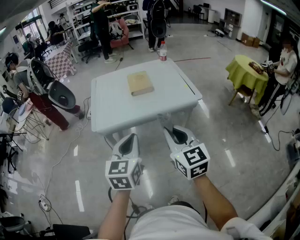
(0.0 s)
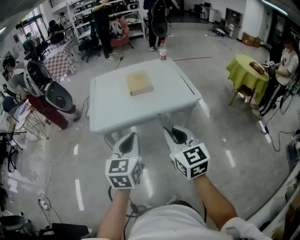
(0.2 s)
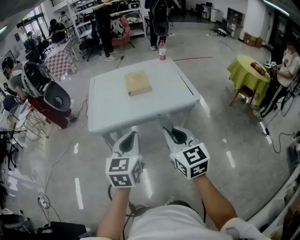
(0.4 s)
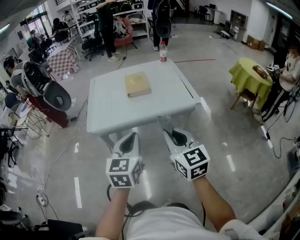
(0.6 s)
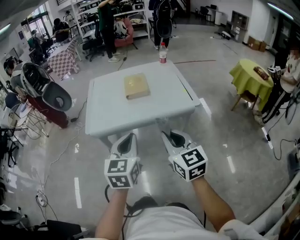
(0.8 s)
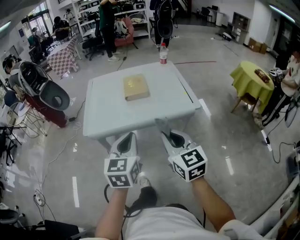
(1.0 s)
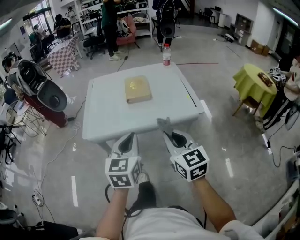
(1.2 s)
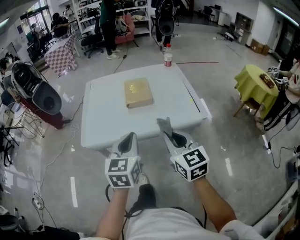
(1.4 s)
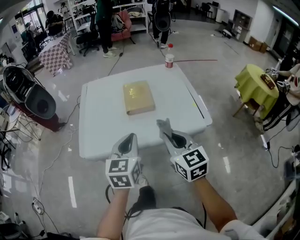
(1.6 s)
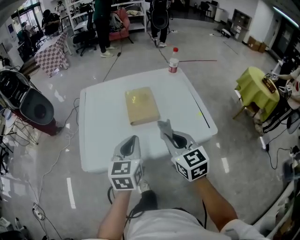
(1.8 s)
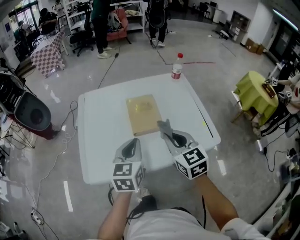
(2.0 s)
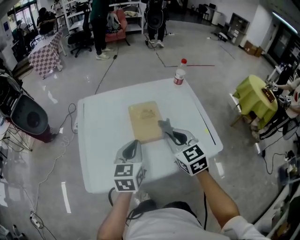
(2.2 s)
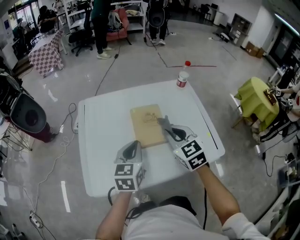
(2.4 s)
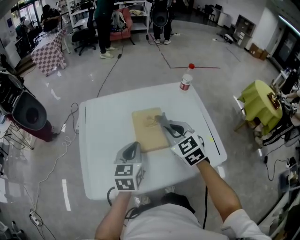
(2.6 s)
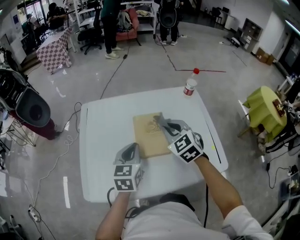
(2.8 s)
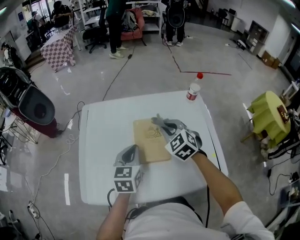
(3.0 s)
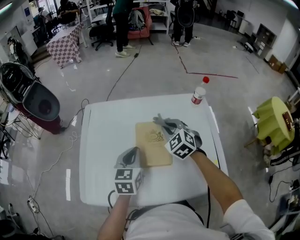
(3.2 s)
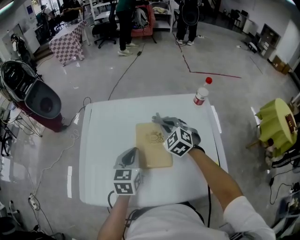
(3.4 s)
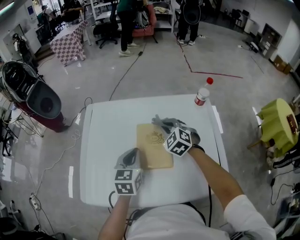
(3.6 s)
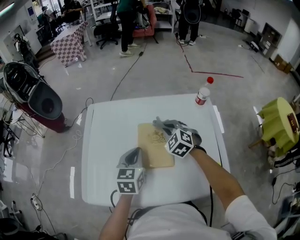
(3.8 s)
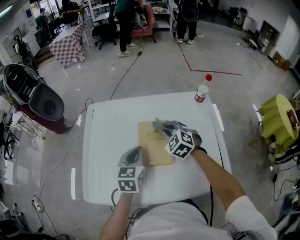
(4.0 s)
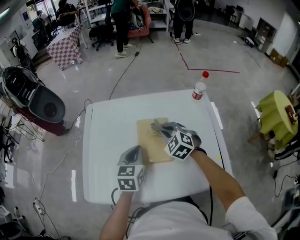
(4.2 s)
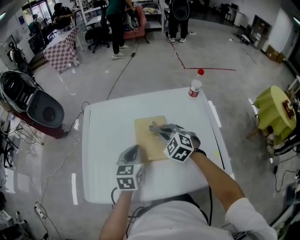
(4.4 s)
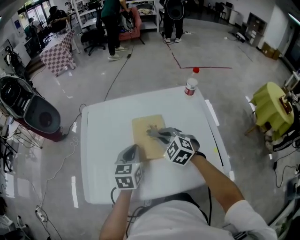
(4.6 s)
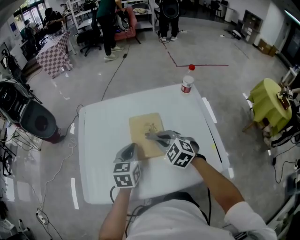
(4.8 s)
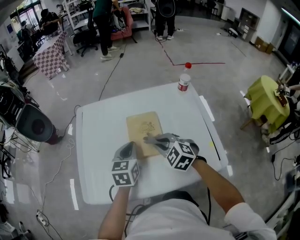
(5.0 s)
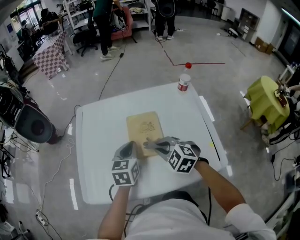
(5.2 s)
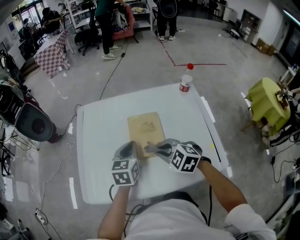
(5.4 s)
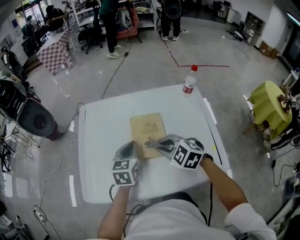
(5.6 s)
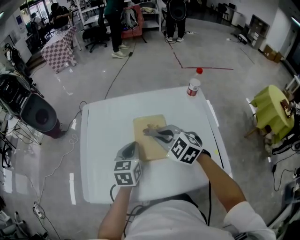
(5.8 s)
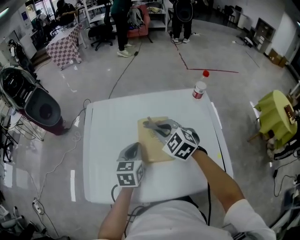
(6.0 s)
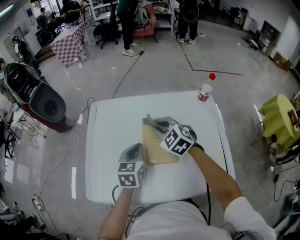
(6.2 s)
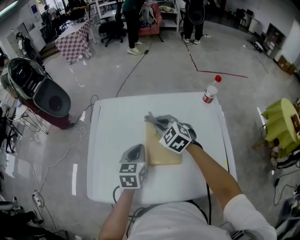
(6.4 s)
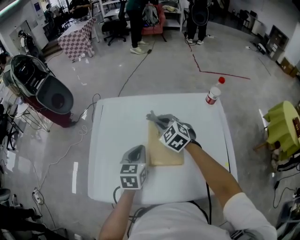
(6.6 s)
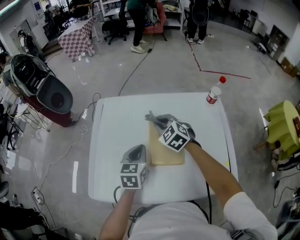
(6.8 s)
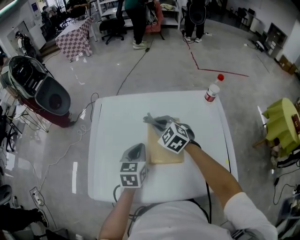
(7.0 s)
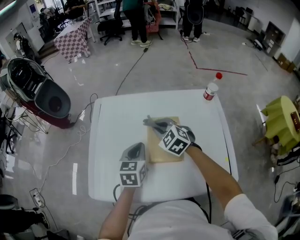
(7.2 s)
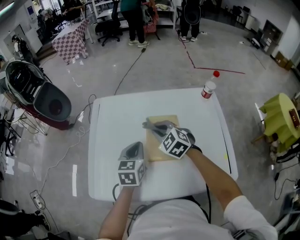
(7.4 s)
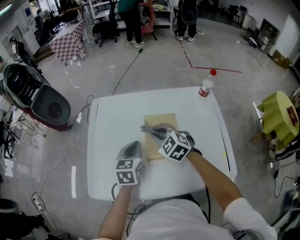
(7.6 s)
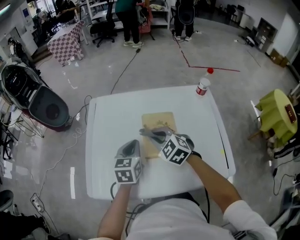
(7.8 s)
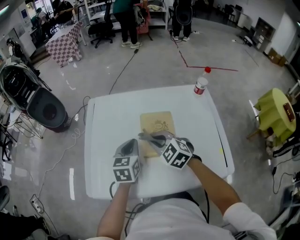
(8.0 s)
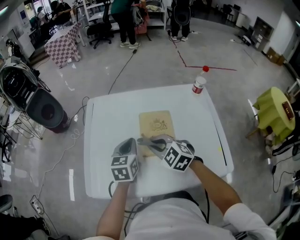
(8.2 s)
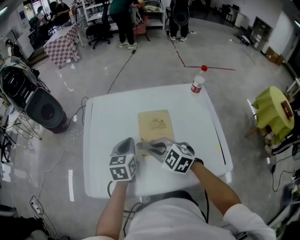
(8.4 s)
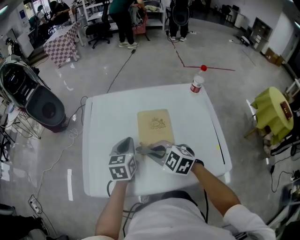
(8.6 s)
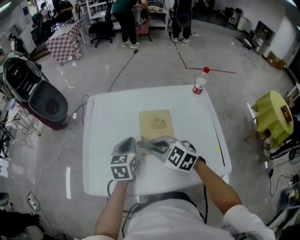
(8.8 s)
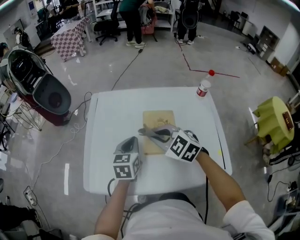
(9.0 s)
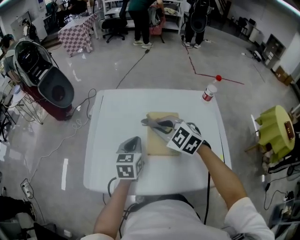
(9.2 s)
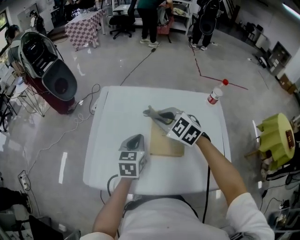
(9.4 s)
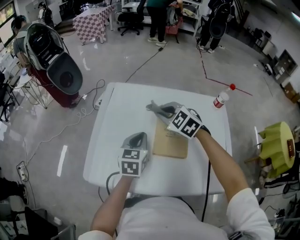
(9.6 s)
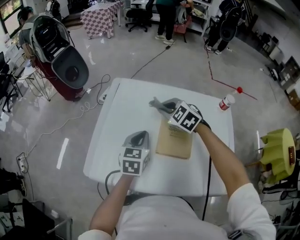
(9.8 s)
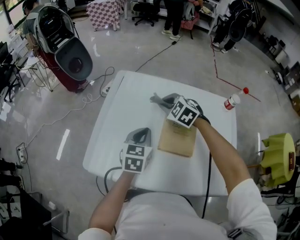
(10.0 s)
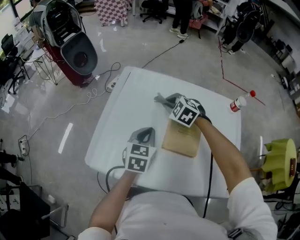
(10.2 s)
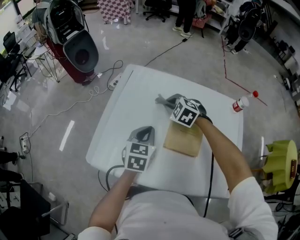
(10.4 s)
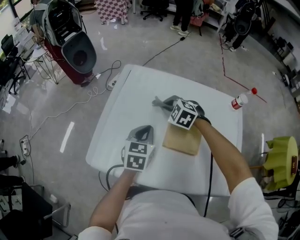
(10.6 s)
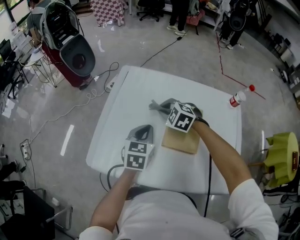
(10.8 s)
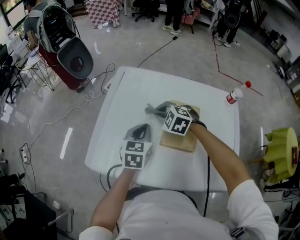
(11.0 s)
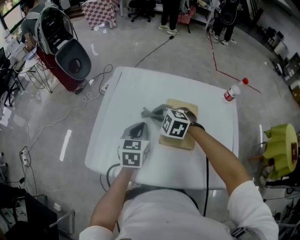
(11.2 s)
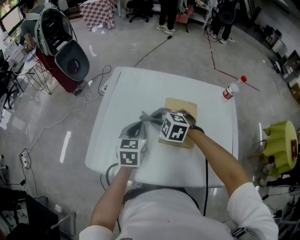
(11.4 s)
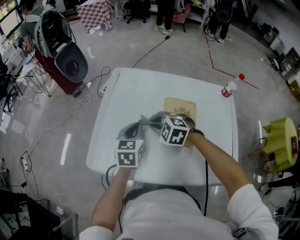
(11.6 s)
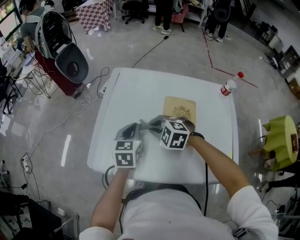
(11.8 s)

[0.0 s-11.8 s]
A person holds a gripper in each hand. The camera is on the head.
0.0 to 1.4 s: The grippers both shift forward by roughly 15 cm.
1.4 to 3.0 s: The grippers both shift forward by about 40 cm. The right gripper rotates some 40 degrees.
3.0 to 4.4 s: The right gripper moves approximately 5 cm forward and comes back.
4.4 to 6.0 s: The right gripper heads upward, covering about 5 cm, and reaches approximately 10 cm backward, then returns.
6.0 to 7.4 s: The right gripper moves about 10 cm forward and comes back.
7.4 to 8.8 s: The right gripper shifts roughly 10 cm backward.
8.8 to 10.4 s: The right gripper is displaced forward by about 20 cm, and changes its angle by some 30 degrees. The left gripper changes place by some 5 cm.
10.4 to 11.8 s: The right gripper goes roughly 15 cm backward and to the left.

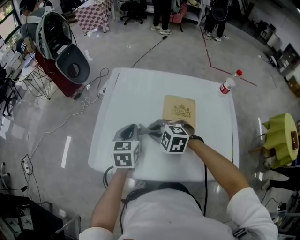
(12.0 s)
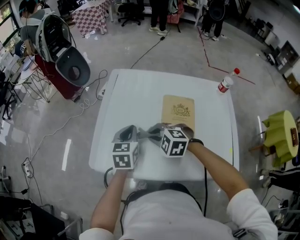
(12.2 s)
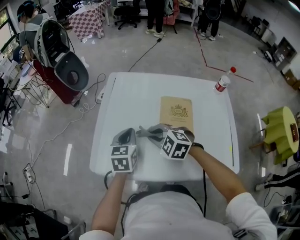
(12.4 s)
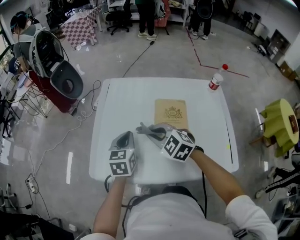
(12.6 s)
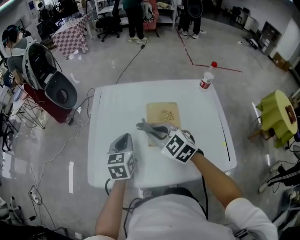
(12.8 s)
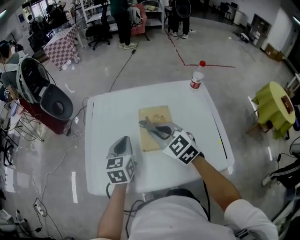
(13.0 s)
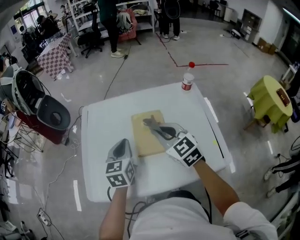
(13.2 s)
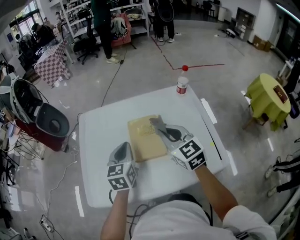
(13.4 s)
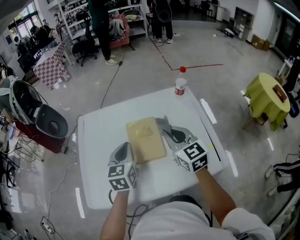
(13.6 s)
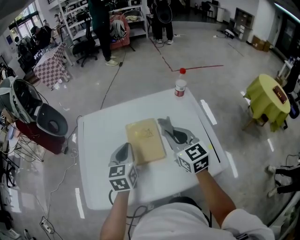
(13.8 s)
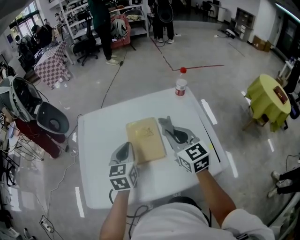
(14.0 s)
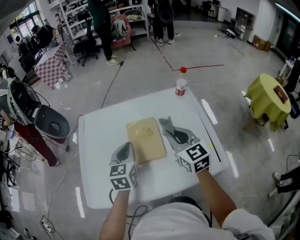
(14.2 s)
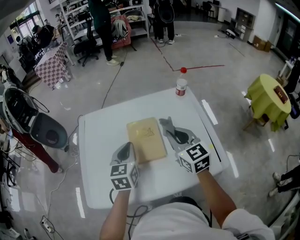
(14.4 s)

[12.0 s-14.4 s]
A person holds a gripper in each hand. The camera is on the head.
12.0 to 13.2 s: The right gripper goes approximately 20 cm to the right and upward, and points its fingers roughly 30 degrees further upward. Meanwhile the left gripper moves to the right and upward, roughly 10 cm.
13.2 to 14.4 s: The right gripper shifts some 10 cm to the right, while the left gripper goes approximately 5 cm to the right.

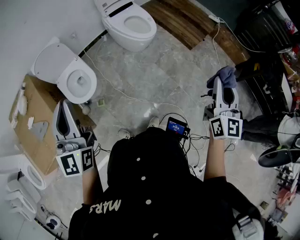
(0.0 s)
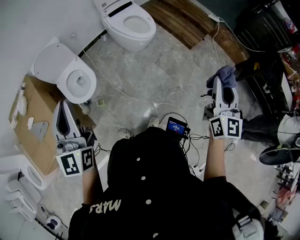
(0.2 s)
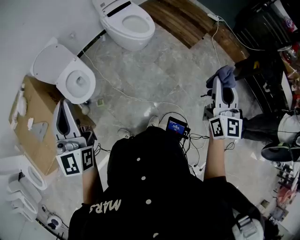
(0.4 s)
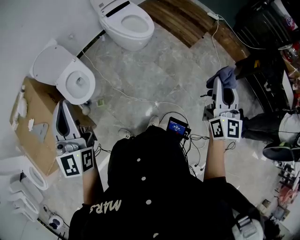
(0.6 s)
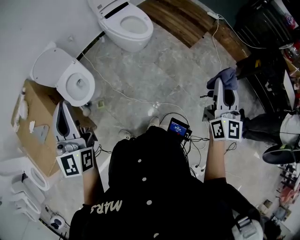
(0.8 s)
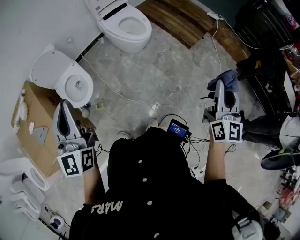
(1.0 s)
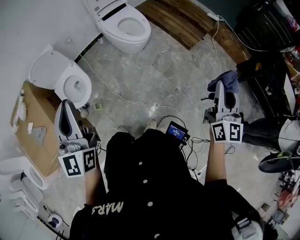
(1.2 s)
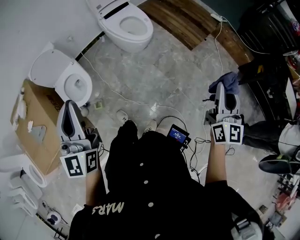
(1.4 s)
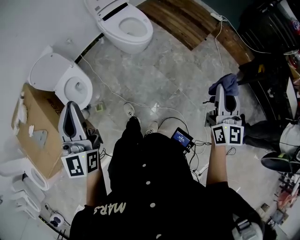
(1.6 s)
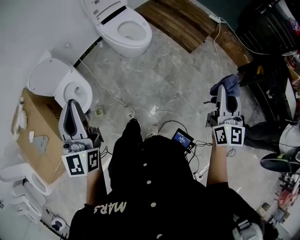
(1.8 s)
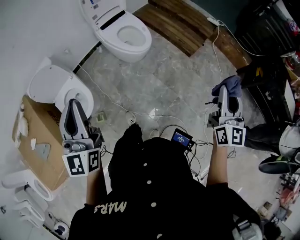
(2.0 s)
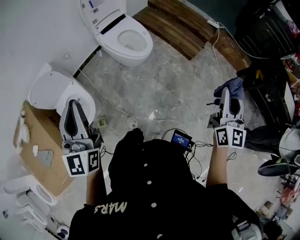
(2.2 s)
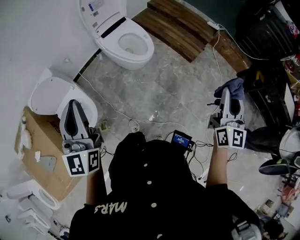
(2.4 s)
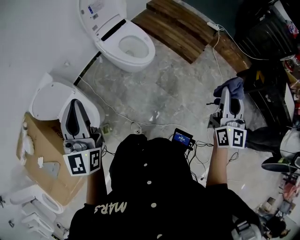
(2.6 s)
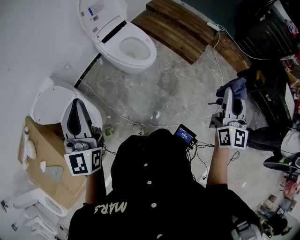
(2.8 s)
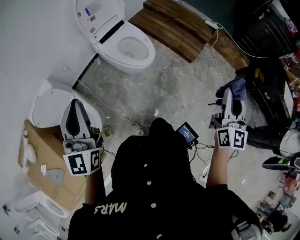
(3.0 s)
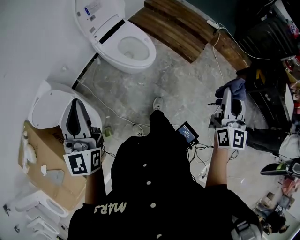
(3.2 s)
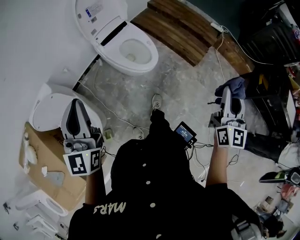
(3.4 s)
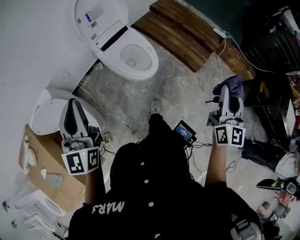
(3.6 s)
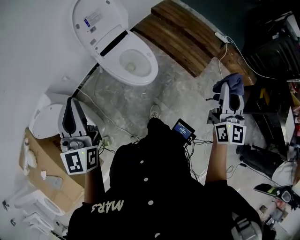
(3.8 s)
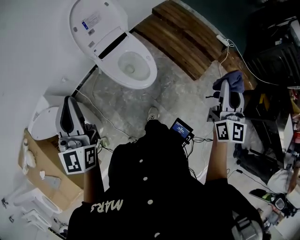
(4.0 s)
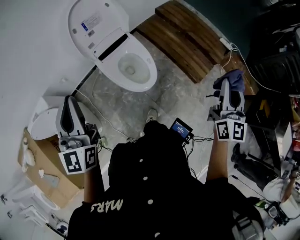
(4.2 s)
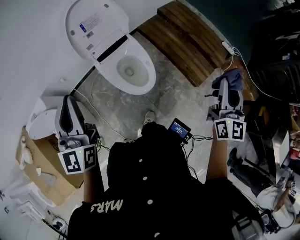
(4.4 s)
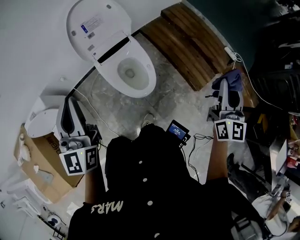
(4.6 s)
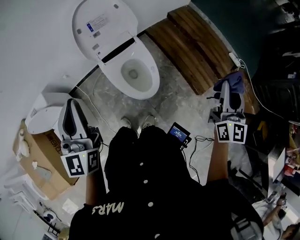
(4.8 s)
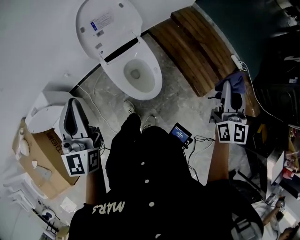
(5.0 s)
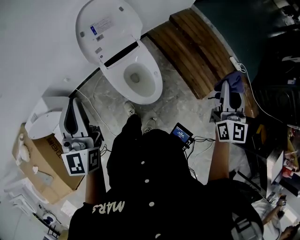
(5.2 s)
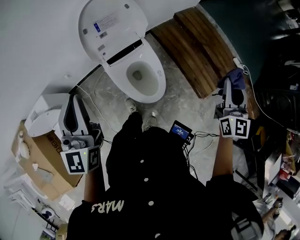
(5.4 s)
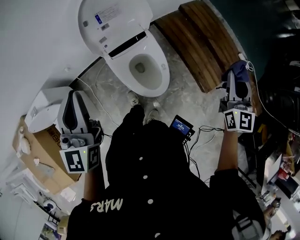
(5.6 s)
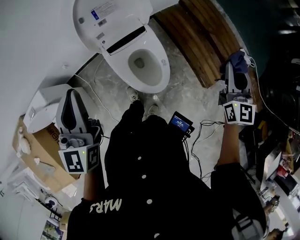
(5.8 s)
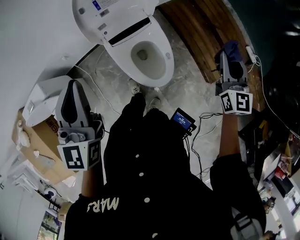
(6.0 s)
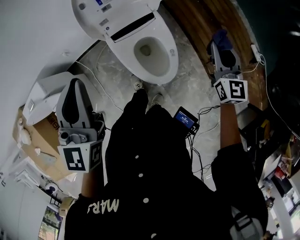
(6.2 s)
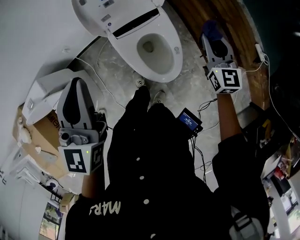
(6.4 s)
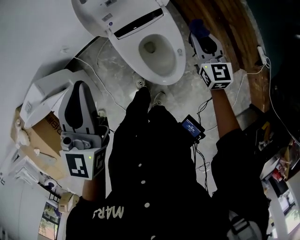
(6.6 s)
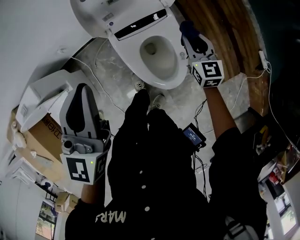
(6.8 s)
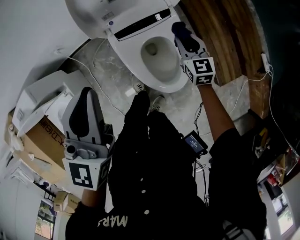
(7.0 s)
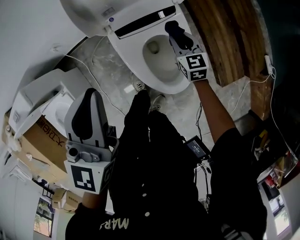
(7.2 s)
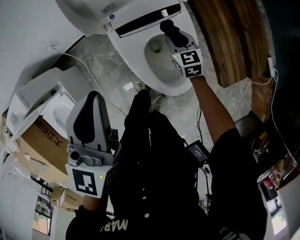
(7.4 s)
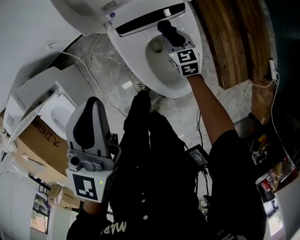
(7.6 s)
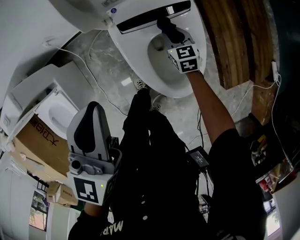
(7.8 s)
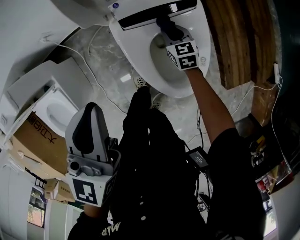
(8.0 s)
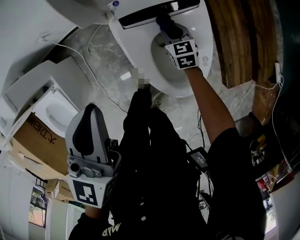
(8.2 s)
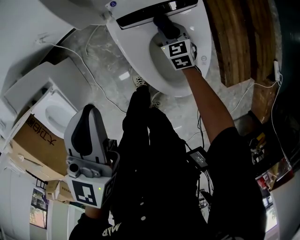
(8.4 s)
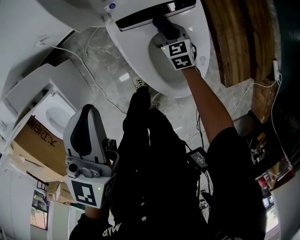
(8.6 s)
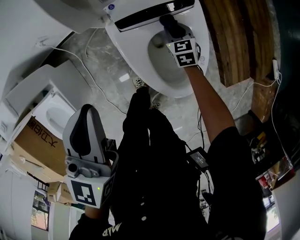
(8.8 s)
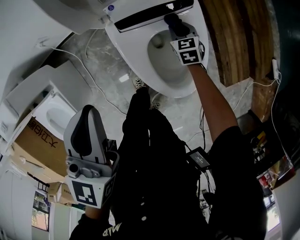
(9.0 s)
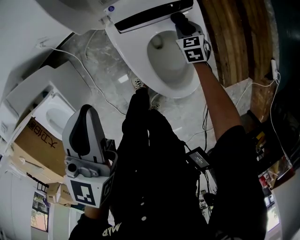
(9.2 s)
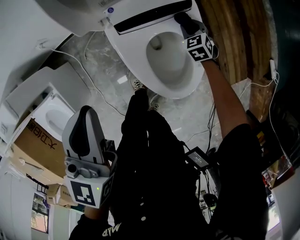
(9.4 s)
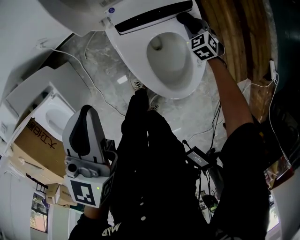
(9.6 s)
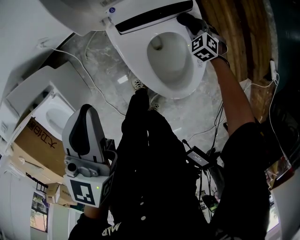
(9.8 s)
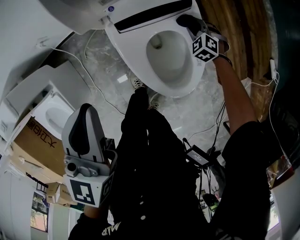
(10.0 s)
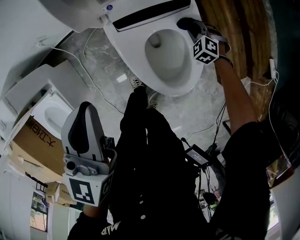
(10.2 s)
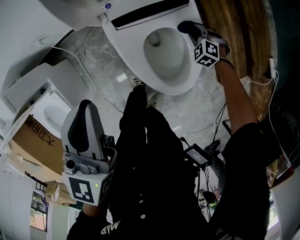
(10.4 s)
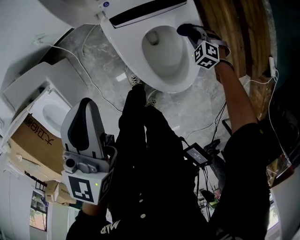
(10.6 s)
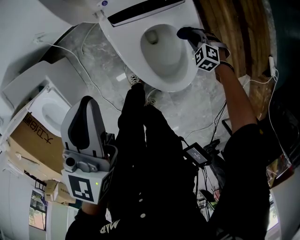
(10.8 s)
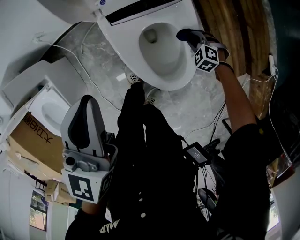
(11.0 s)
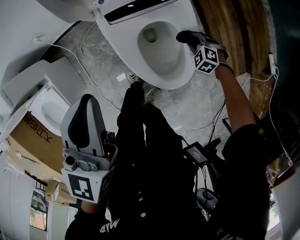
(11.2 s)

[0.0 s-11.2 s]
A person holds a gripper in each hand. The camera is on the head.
0.0 to 1.6 s: The grippers both shift to the right and forward by about 10 cm.
1.6 to 3.2 s: The right gripper travels forward and to the left by some 20 cm; the left gripper travels forward by approximately 25 cm.
3.2 to 4.8 s: The right gripper is displaced forward by some 40 cm. Meanwhile the left gripper goes roughly 25 cm forward.
4.8 to 6.4 s: The right gripper goes some 40 cm forward, downward and to the left, and swivels approximately 30 degrees. Meanwhile the left gripper is displaced forward and downward by about 15 cm.
6.4 to 8.0 s: The left gripper heads downward, covering about 20 cm, while the right gripper is displaced downward and to the left by some 50 cm, and turns by approximately 30 degrees.
8.0 to 9.6 s: The right gripper is displaced to the right by approximately 10 cm, and swivels some 30 degrees.
9.6 to 11.2 s: The left gripper changes place by about 5 cm. Meanwhile the right gripper is displaced backward by some 15 cm, and swivels roughly 30 degrees.
